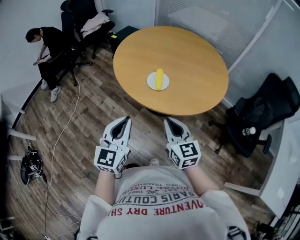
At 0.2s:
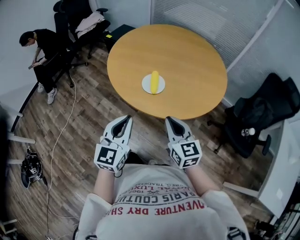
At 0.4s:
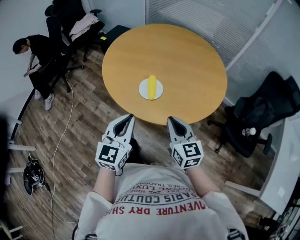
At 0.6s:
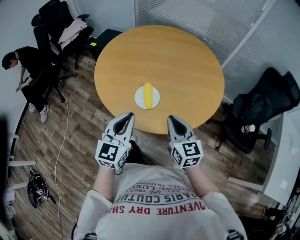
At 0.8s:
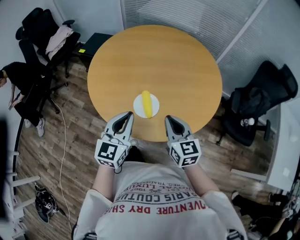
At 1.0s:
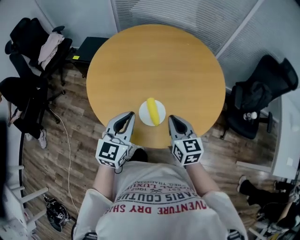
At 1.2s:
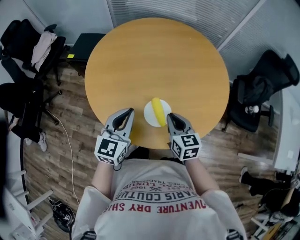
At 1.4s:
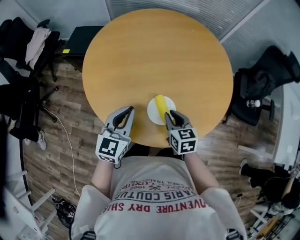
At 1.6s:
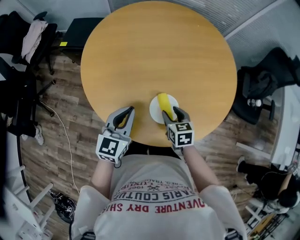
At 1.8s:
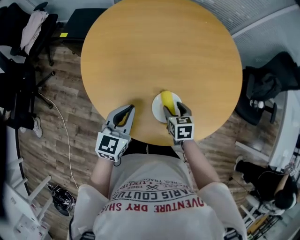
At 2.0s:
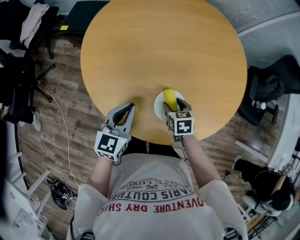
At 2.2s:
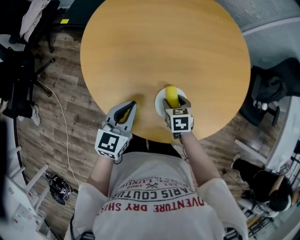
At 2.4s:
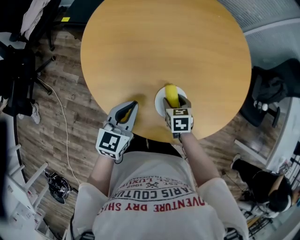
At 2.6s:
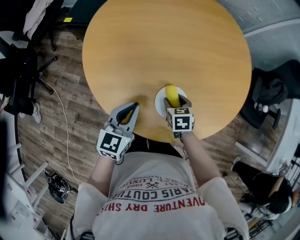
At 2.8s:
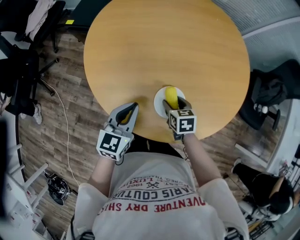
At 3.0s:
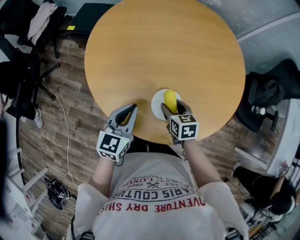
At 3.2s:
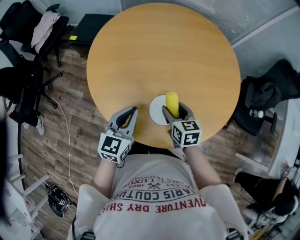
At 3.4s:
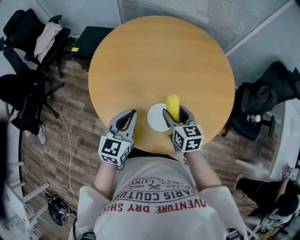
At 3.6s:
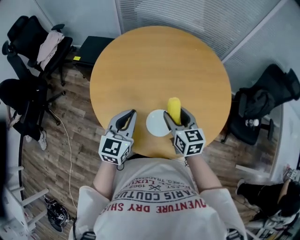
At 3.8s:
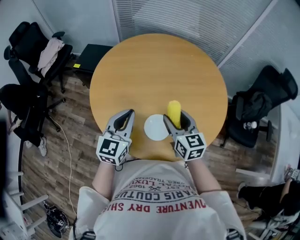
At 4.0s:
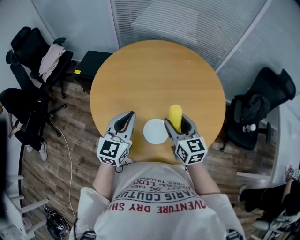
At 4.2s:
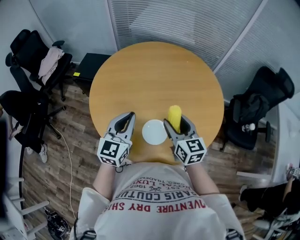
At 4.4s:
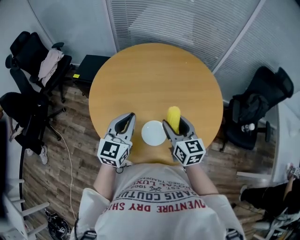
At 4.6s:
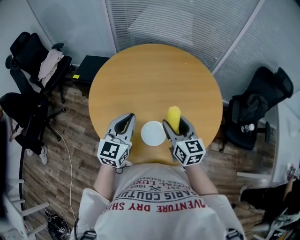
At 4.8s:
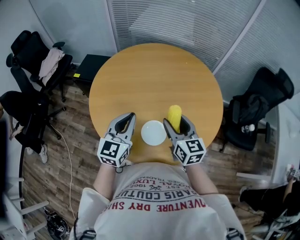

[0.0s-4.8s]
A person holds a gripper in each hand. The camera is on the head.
0.0s to 1.6s: The left gripper ends up roughly 40 cm from where it was, and swivels some 30 degrees. The right gripper moves roughly 40 cm, tilts its fingers roughly 40 degrees downward, and opens up.
1.6s to 3.2s: The right gripper moves upward, roughly 5 cm.
3.2s to 4.8s: Both grippers travel together upward, roughly 15 cm. The right gripper swivels roughly 30 degrees.

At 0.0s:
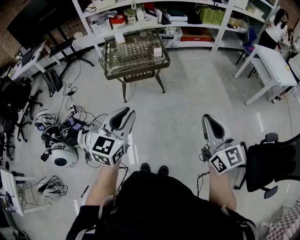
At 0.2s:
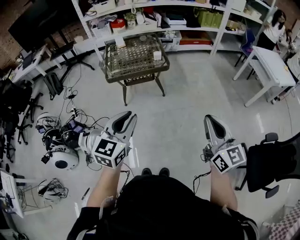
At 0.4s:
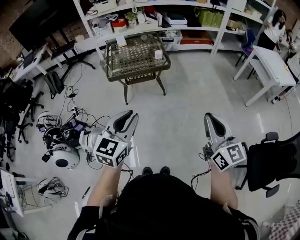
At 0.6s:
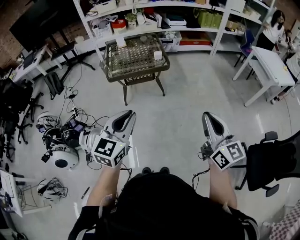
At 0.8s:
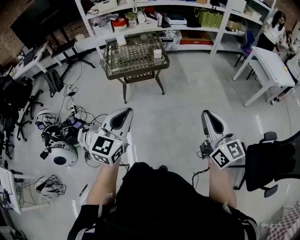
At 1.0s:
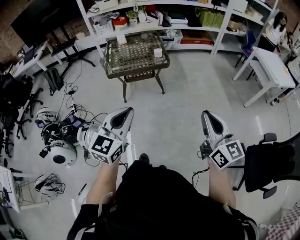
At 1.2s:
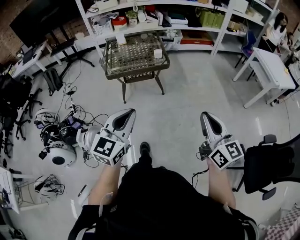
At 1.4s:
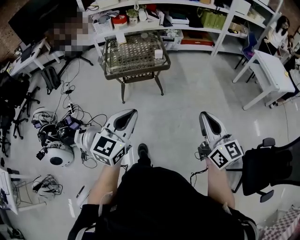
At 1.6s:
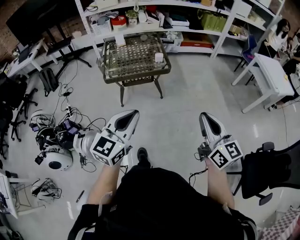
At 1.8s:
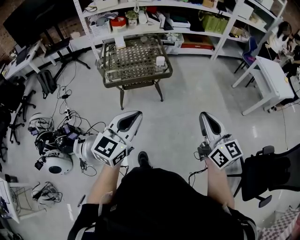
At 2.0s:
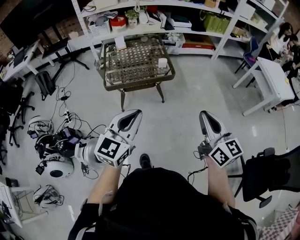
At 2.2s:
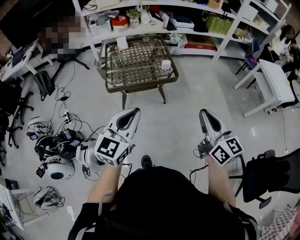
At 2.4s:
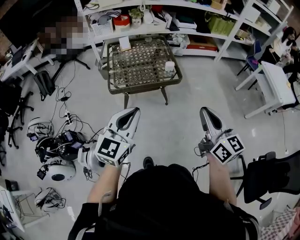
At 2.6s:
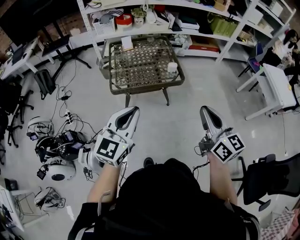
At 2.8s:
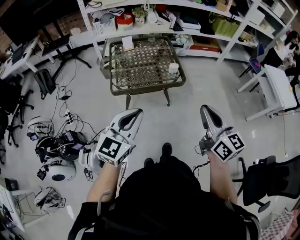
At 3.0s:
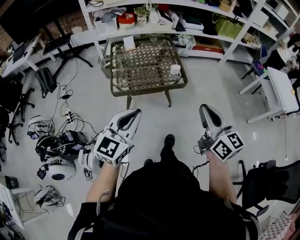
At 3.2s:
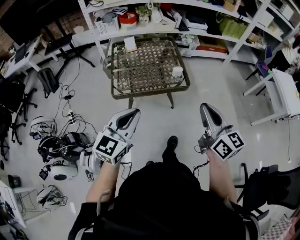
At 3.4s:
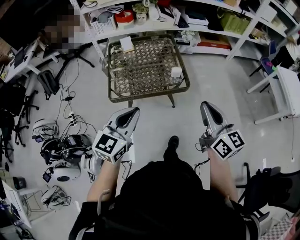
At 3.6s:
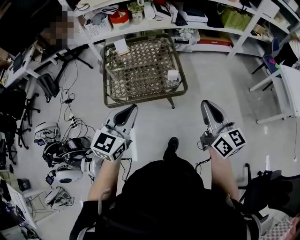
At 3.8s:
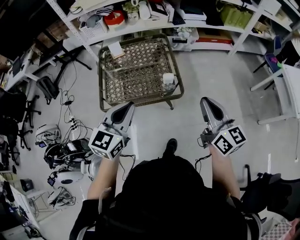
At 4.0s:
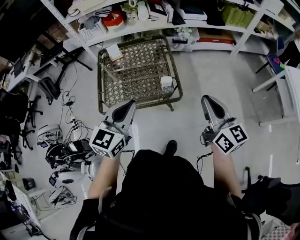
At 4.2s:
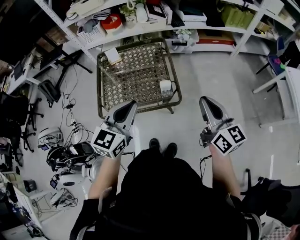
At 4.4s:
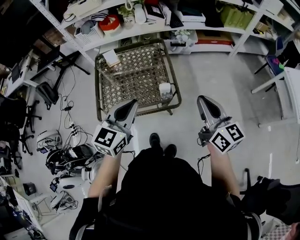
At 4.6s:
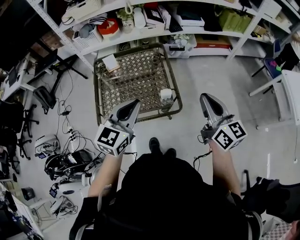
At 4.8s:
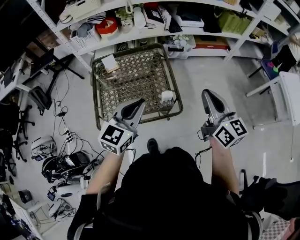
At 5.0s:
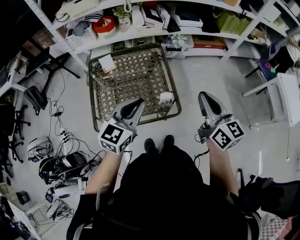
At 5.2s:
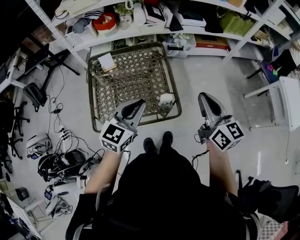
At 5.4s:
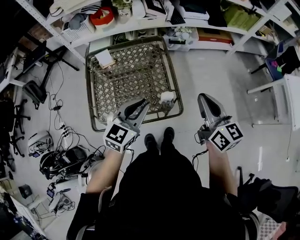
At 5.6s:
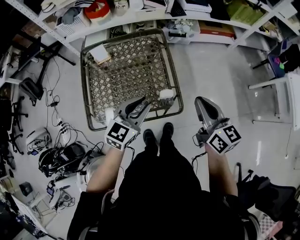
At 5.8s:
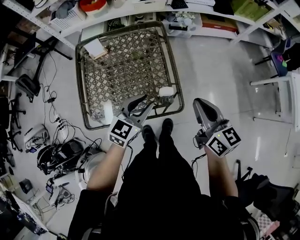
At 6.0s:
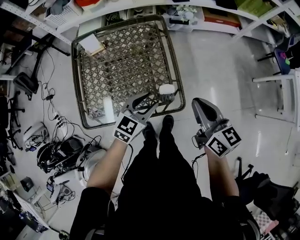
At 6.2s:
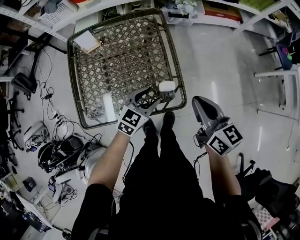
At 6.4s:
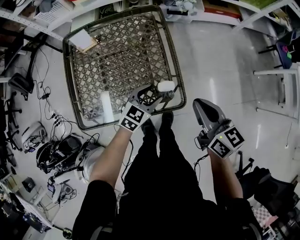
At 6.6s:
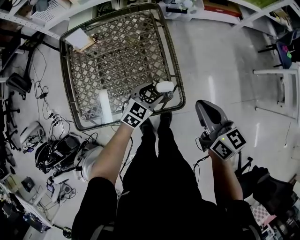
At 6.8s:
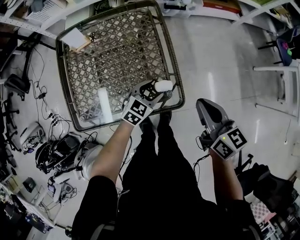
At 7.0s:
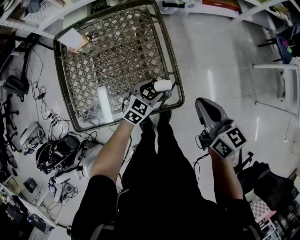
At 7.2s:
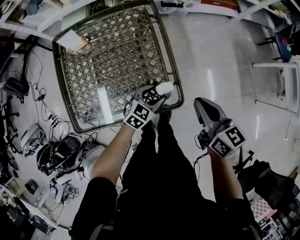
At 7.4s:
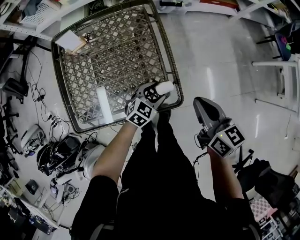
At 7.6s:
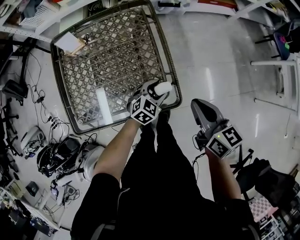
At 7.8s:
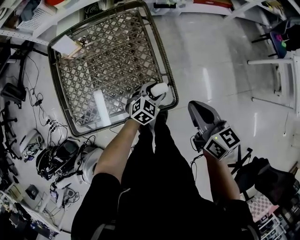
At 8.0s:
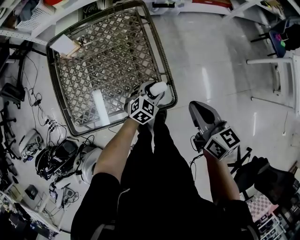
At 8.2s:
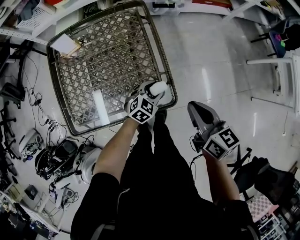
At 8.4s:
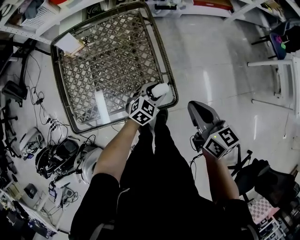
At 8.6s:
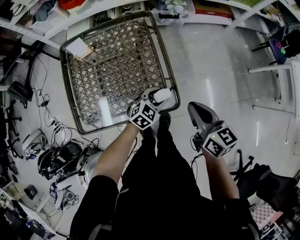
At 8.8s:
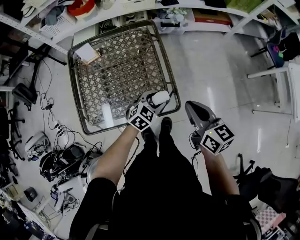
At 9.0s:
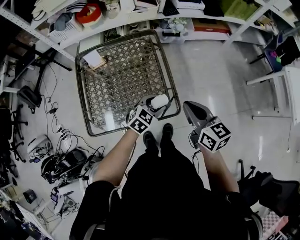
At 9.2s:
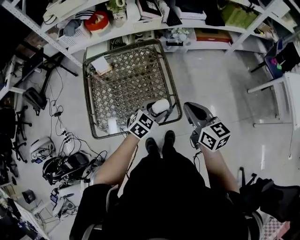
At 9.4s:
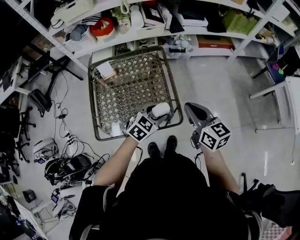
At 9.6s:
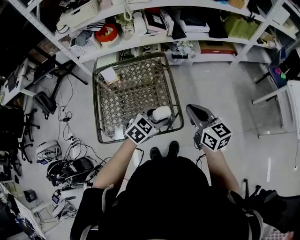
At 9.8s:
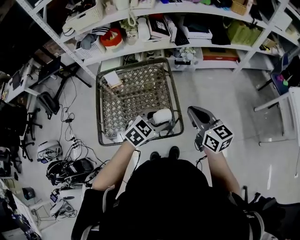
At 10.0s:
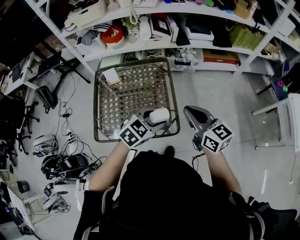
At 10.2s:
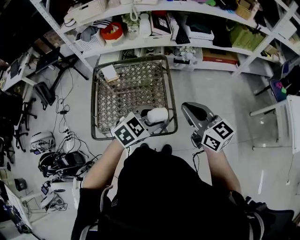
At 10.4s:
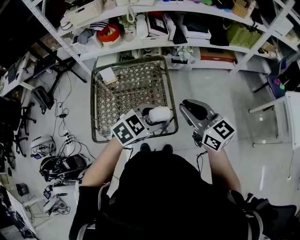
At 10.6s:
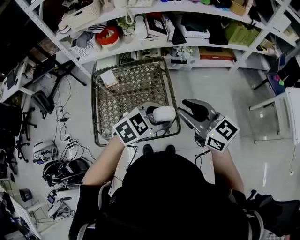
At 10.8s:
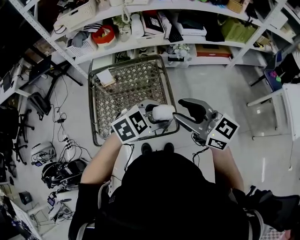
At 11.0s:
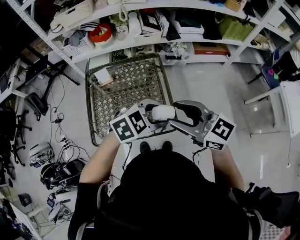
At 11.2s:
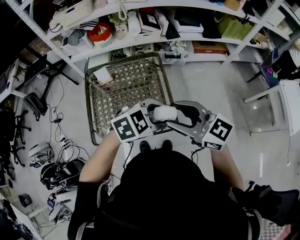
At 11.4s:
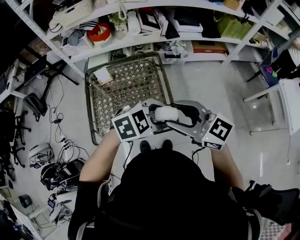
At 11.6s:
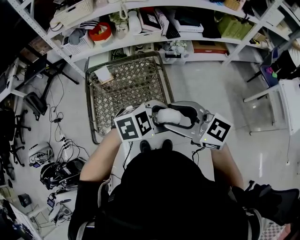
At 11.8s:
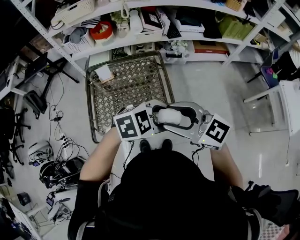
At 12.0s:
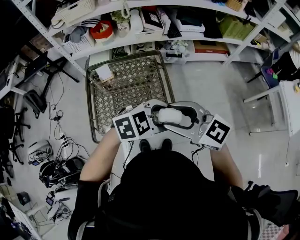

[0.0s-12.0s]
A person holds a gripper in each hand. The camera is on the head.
0.0s to 1.6s: The right gripper goes some 5 cm forward.
1.6s to 3.0s: The grippers both shift forward and to the left by roughly 25 cm.
3.0s to 4.4s: The left gripper shifts approximately 30 cm forward; the right gripper goes roughly 30 cm forward and to the right.
4.4s to 6.0s: The left gripper moves downward and forward, about 25 cm, and opens its fingers. Meanwhile the right gripper travels downward, forward and to the left by roughly 20 cm.
6.0s to 7.6s: The left gripper goes about 15 cm downward and to the right; the right gripper is displaced downward by roughly 5 cm.
7.6s to 9.0s: The left gripper moves upward, some 10 cm. The right gripper heads upward, covering roughly 5 cm.
9.0s to 10.4s: The right gripper shifts some 10 cm upward, and changes its angle by some 20 degrees. The left gripper shifts some 20 cm upward.
10.4s to 12.0s: The right gripper moves approximately 10 cm, turns by approximately 20 degrees, and opens, while the left gripper changes place by some 5 cm, and rotates some 20 degrees.

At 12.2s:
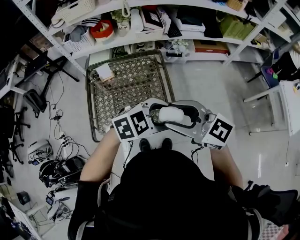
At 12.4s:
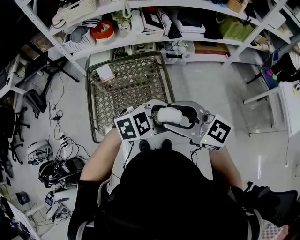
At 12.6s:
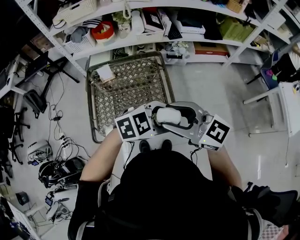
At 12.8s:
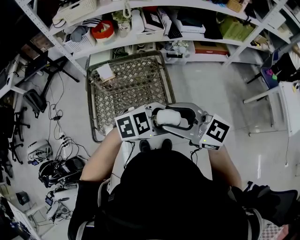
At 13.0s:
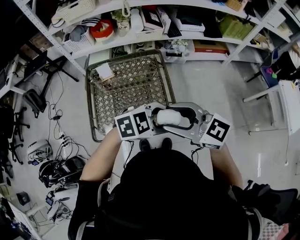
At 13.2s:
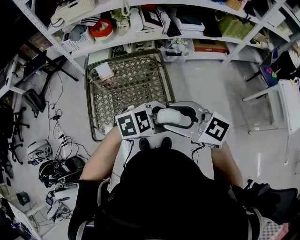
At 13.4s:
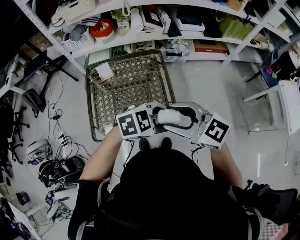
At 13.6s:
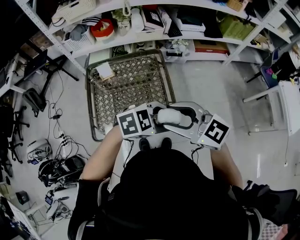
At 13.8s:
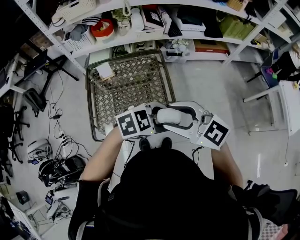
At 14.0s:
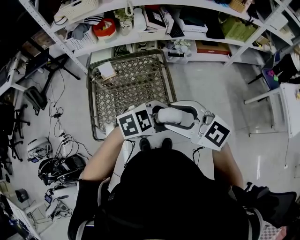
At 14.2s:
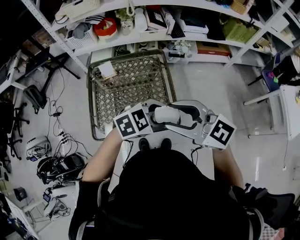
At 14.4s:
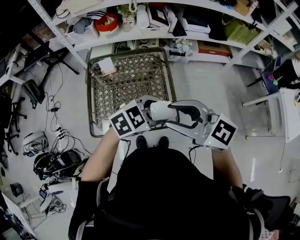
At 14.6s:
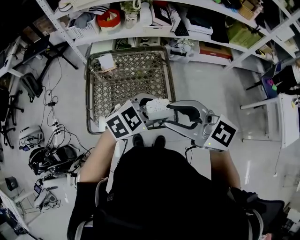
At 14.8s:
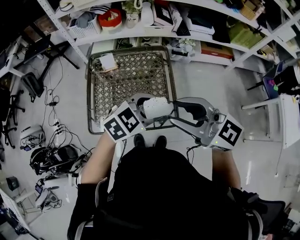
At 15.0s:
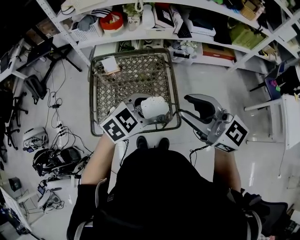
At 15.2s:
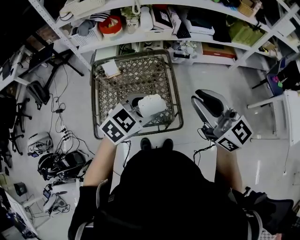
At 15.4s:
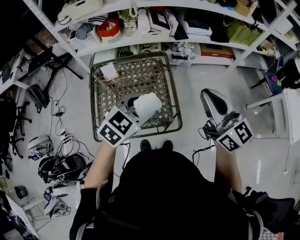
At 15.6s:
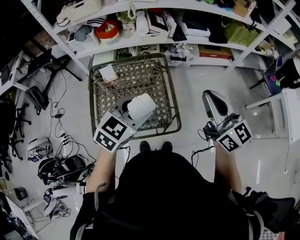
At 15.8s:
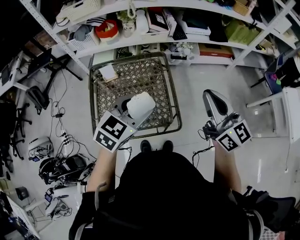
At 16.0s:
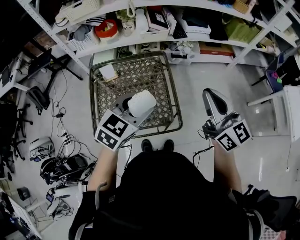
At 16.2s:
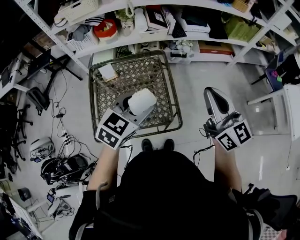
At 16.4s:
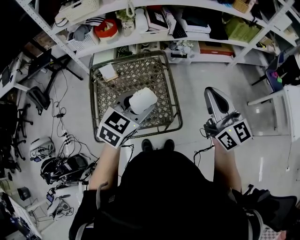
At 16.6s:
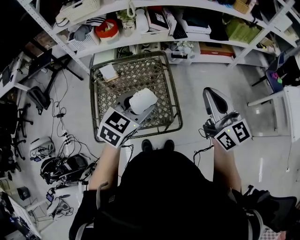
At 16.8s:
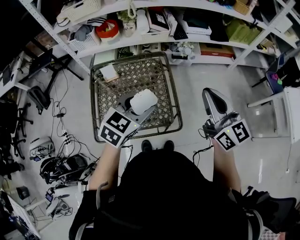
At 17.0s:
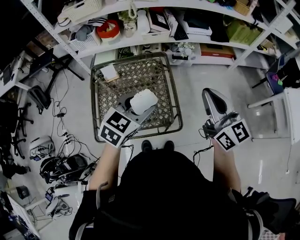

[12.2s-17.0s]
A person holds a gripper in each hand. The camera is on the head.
12.2s to 13.8s: The grippers stay close to where they were, moving slightly.
13.8s to 15.4s: The right gripper changes place by roughly 15 cm, swivels about 40 degrees, and closes up; the left gripper shifts by some 10 cm, and turns by about 30 degrees.
15.4s to 17.0s: The grippers make only small movements.

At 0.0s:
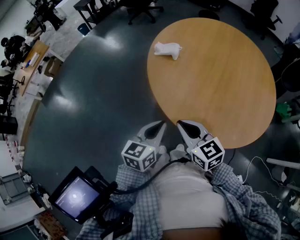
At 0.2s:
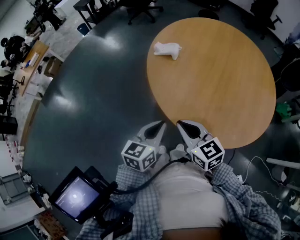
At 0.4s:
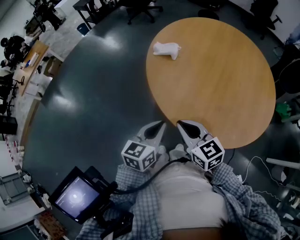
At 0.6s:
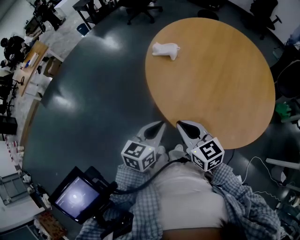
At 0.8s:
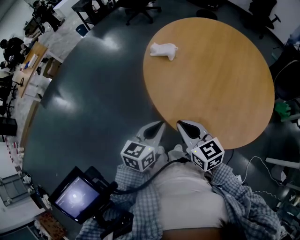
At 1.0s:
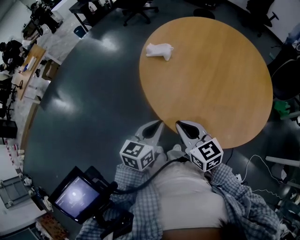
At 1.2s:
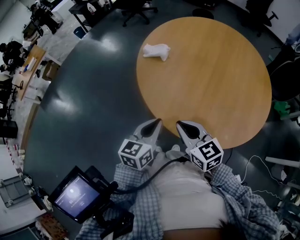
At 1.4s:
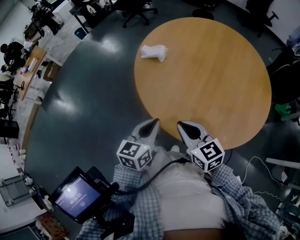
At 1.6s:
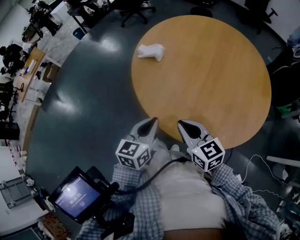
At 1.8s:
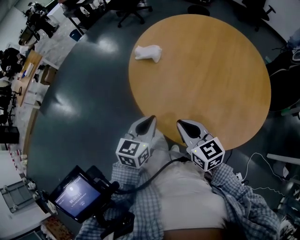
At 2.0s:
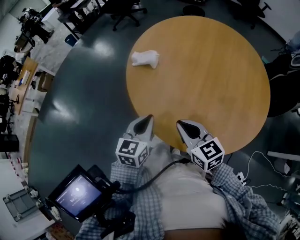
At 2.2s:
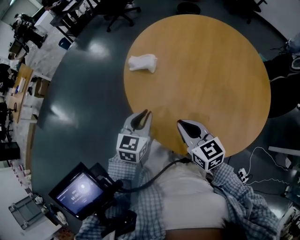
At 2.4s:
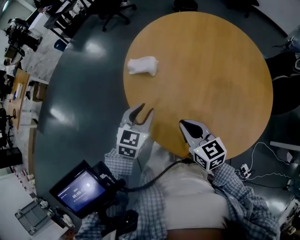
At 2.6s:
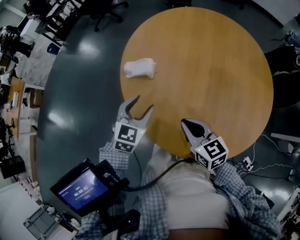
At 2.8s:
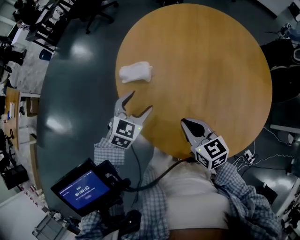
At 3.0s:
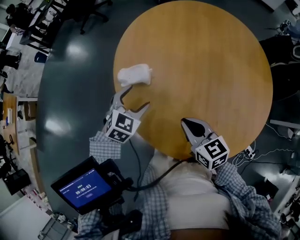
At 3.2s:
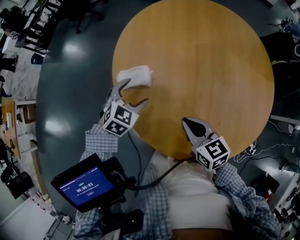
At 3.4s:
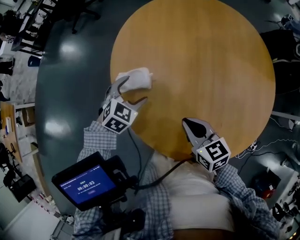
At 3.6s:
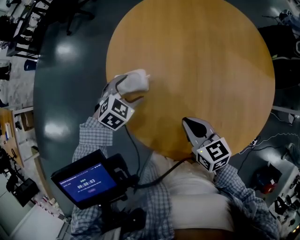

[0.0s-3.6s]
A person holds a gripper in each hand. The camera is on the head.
0.0s to 1.8s: The left gripper travels forward and to the right by approximately 5 cm, while the right gripper is displaced to the right by approximately 10 cm.
1.8s to 3.6s: The left gripper moves approximately 35 cm, tilts its fingers about 30 degrees downward, and opens up. The right gripper shifts by approximately 20 cm, and swivels about 30 degrees.
